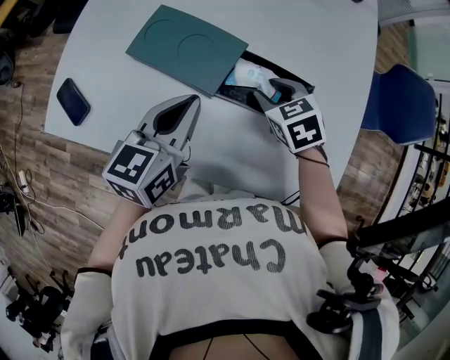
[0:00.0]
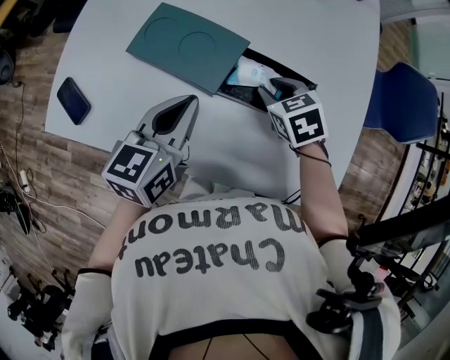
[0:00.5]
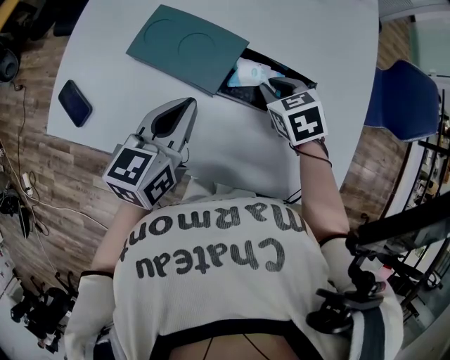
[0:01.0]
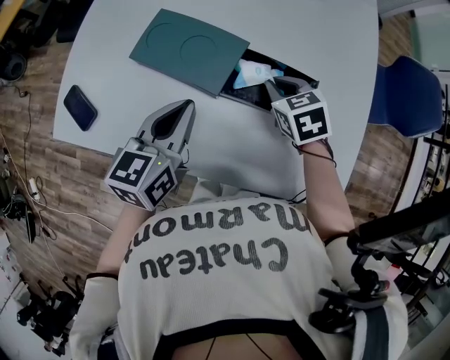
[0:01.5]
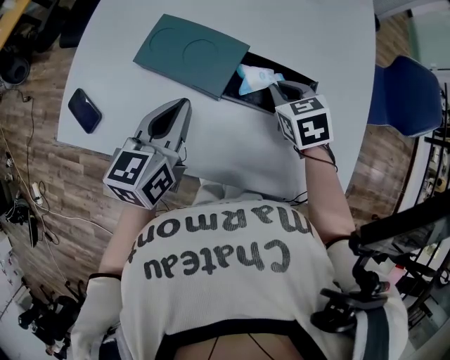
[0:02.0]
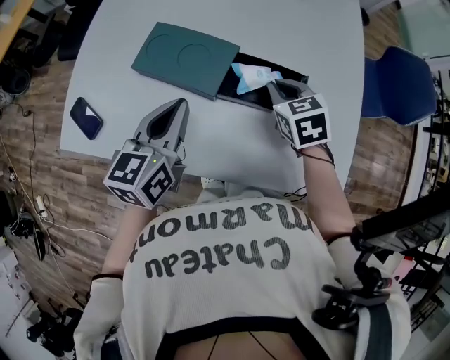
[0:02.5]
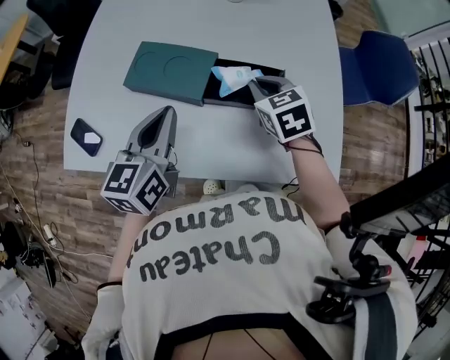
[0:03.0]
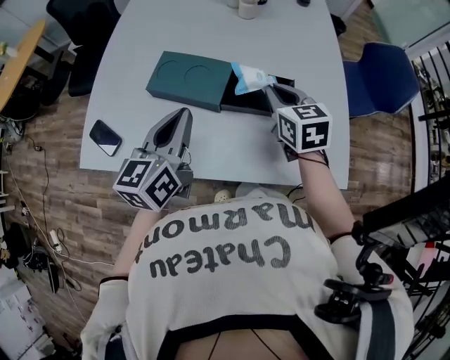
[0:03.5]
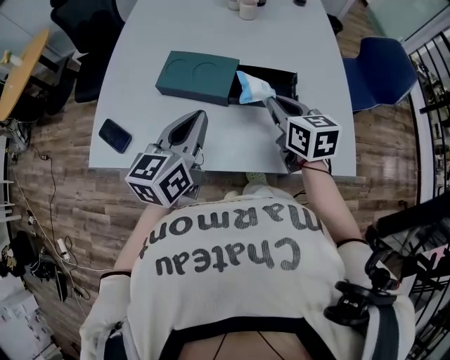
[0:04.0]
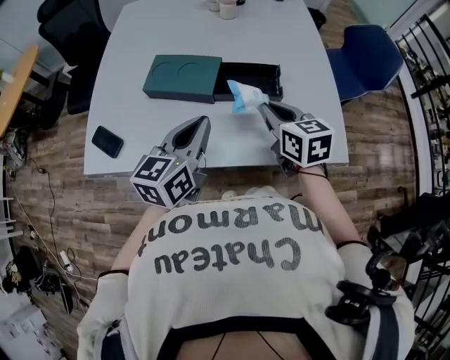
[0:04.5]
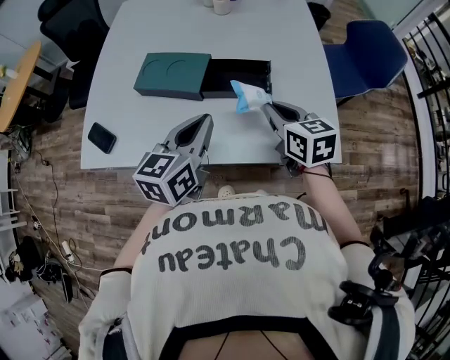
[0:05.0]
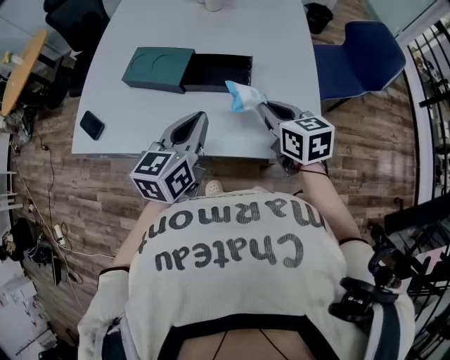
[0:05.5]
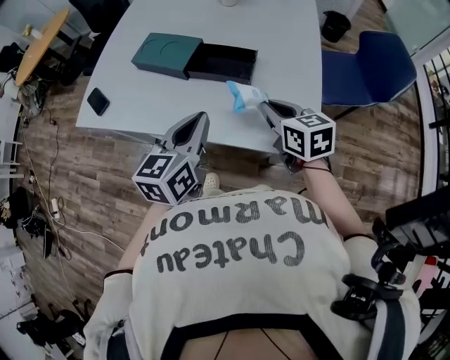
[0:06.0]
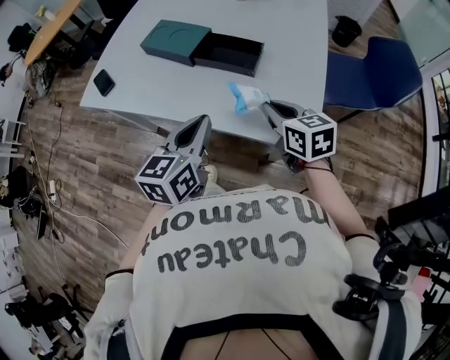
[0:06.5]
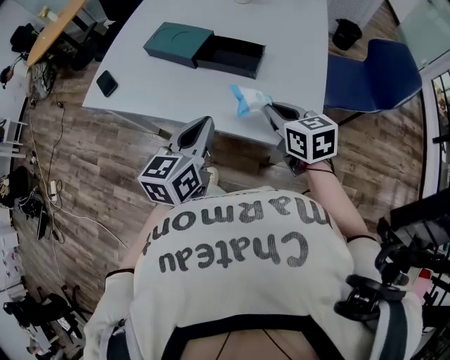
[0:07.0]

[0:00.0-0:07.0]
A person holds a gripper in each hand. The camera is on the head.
0:00.0 to 0:02.0: The right gripper closes its fingers.
0:02.0 to 0:03.5: Both grippers move upward, approximately 10 cm. The right gripper changes its angle by some 30 degrees.
0:03.5 to 0:05.0: The right gripper moves backward and to the right, some 10 cm; the left gripper shifts approximately 10 cm to the right and backward.
0:05.0 to 0:07.0: The two grippers go approximately 15 cm backward and to the right.

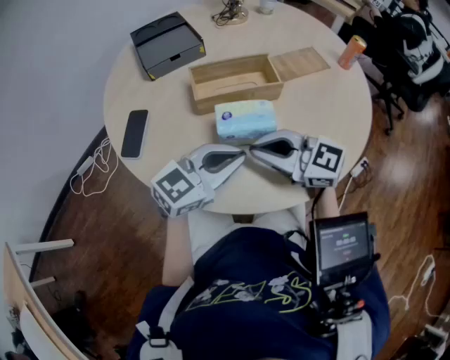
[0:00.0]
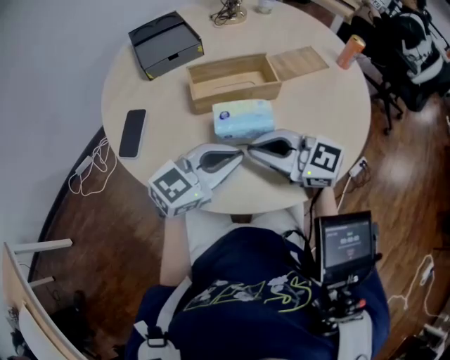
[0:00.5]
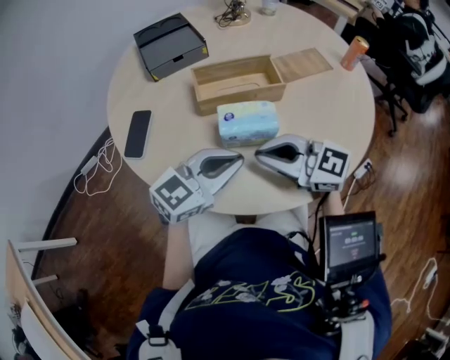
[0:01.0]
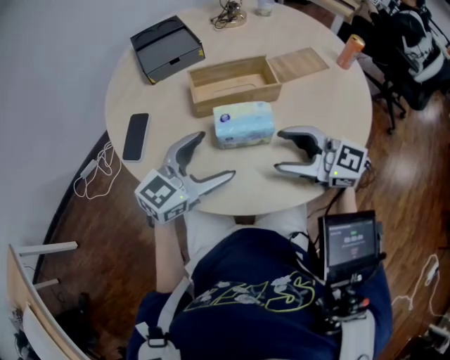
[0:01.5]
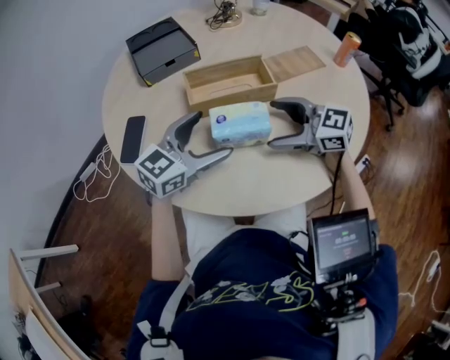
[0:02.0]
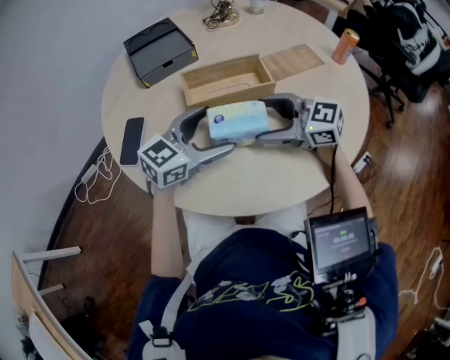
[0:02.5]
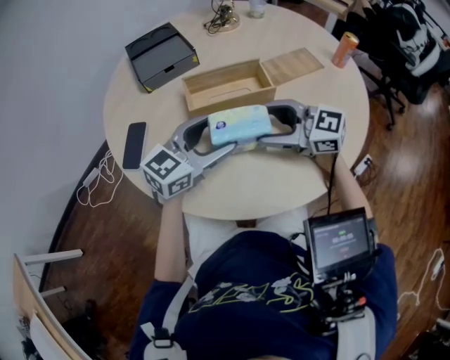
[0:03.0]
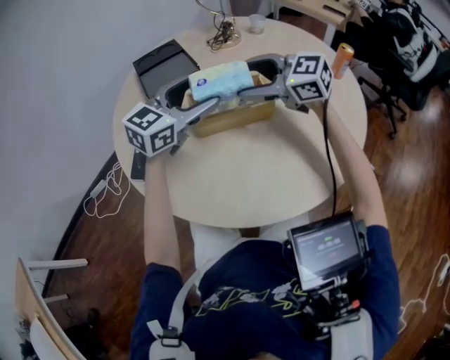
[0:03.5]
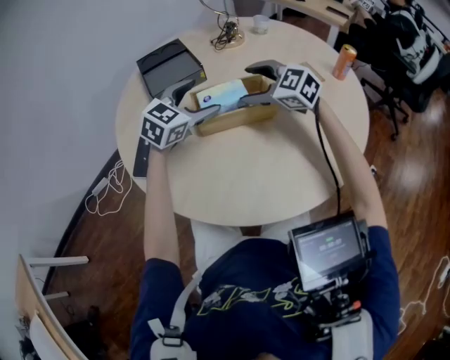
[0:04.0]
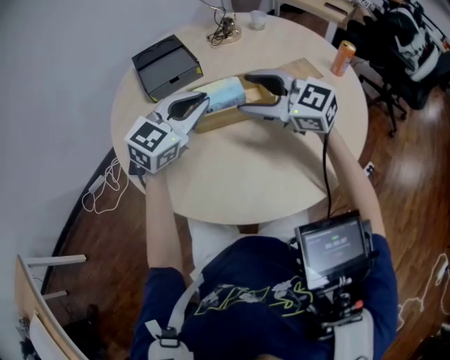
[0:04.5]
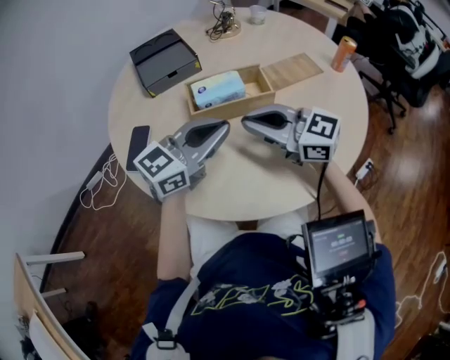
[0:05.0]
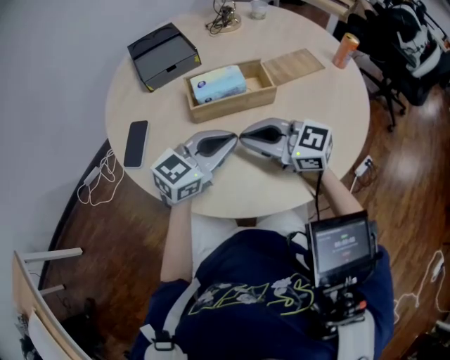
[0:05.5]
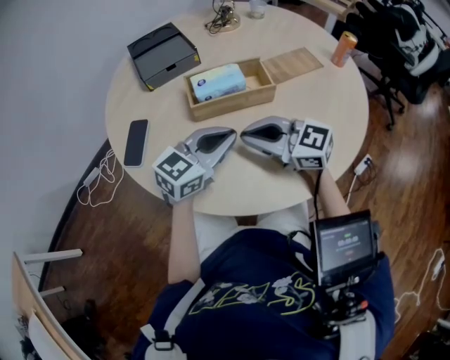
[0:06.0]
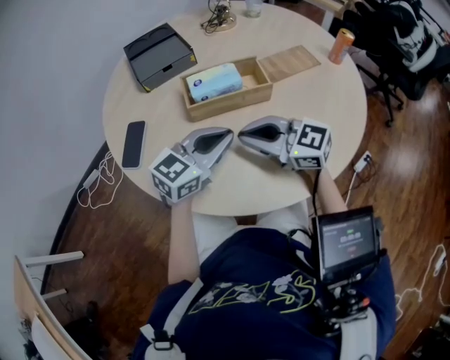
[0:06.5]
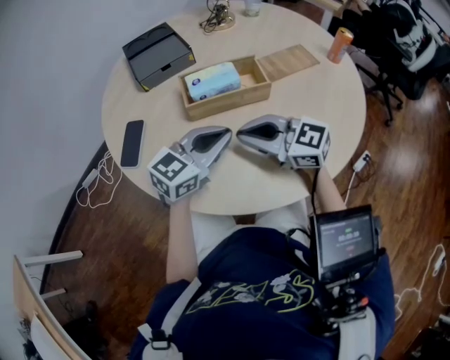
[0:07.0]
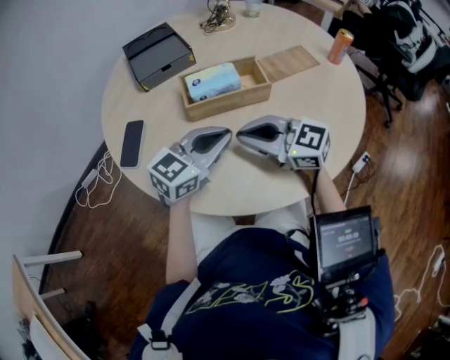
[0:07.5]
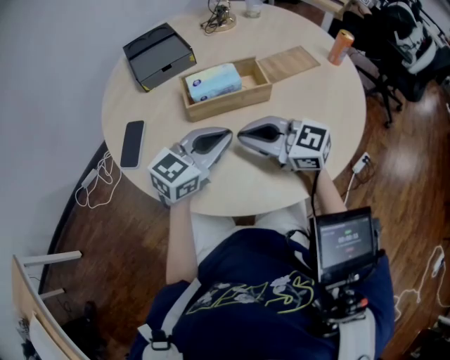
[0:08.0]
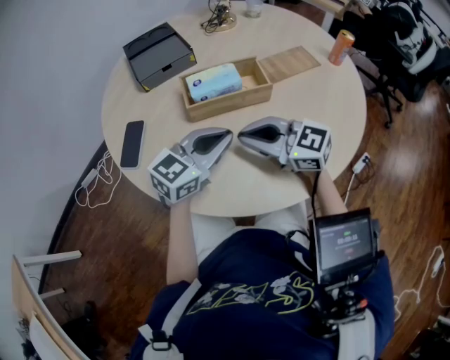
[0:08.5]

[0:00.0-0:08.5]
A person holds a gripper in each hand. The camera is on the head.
0:00.0 to 0:02.0: The left gripper changes place by about 10 cm, and opens up. The right gripper moves some 10 cm, and opens its fingers.
0:02.0 to 0:04.0: The left gripper shifts by some 15 cm, and rotates roughly 20 degrees, while the right gripper moves roughly 15 cm, and rotates some 30 degrees.
0:04.0 to 0:06.5: The left gripper ends up approximately 15 cm from where it was, turns by about 20 degrees, and closes up; the right gripper shifts by about 20 cm, swivels roughly 30 degrees, and closes.
0:06.5 to 0:08.5: Both grippers stay put.

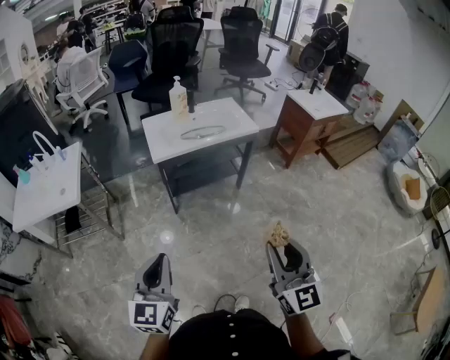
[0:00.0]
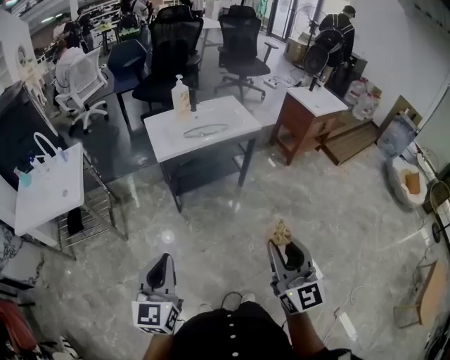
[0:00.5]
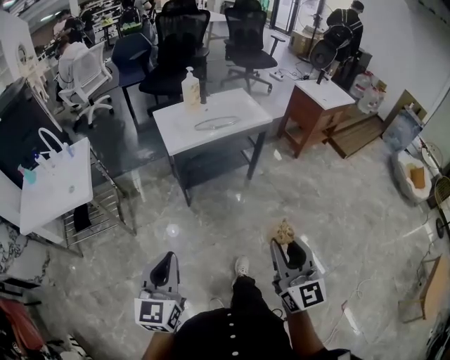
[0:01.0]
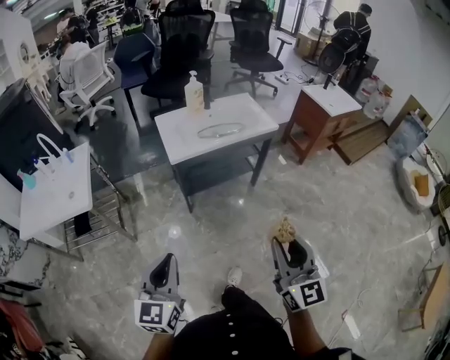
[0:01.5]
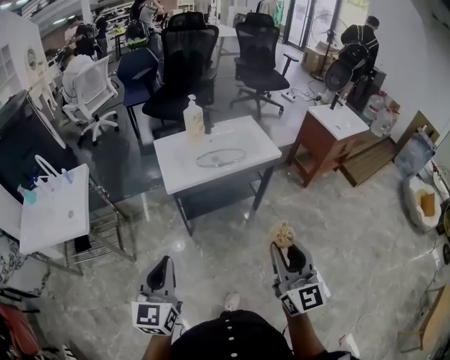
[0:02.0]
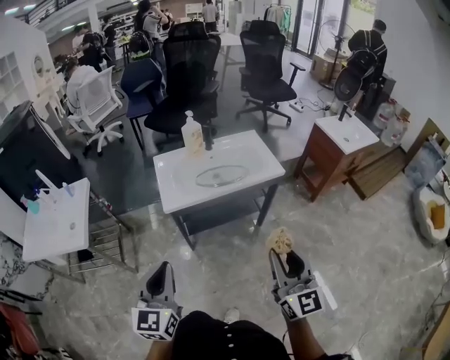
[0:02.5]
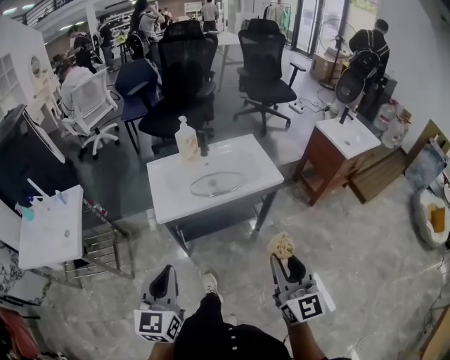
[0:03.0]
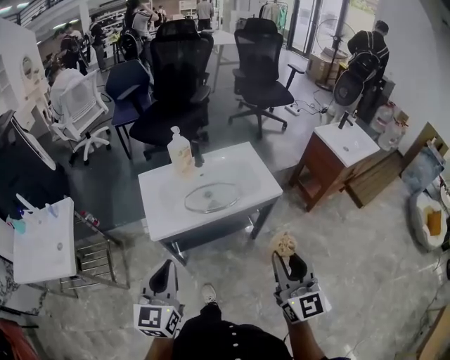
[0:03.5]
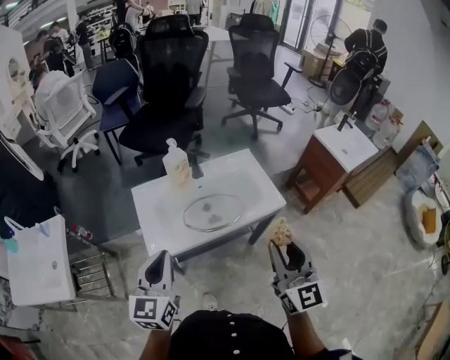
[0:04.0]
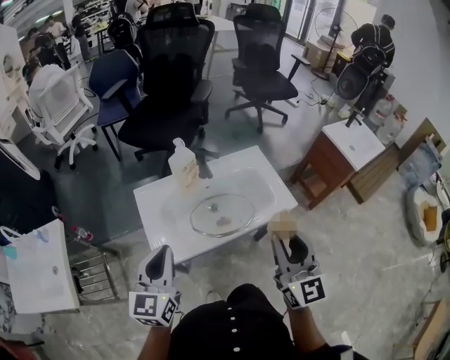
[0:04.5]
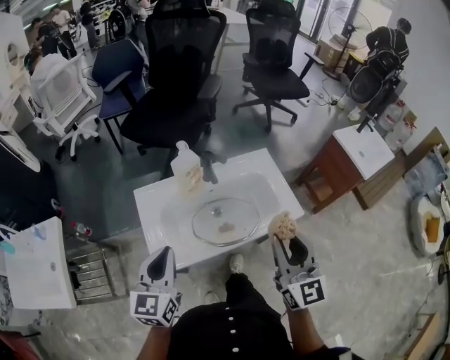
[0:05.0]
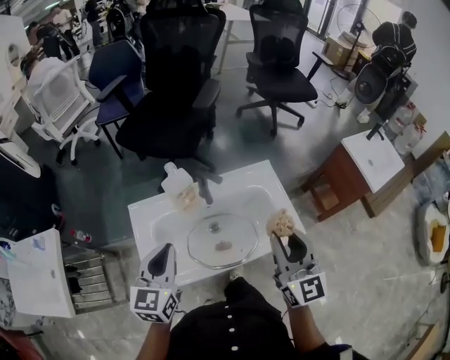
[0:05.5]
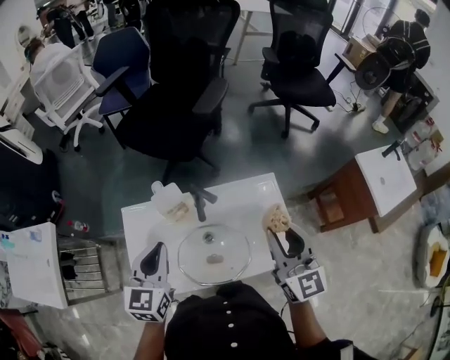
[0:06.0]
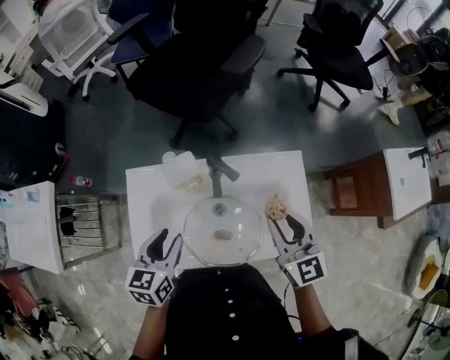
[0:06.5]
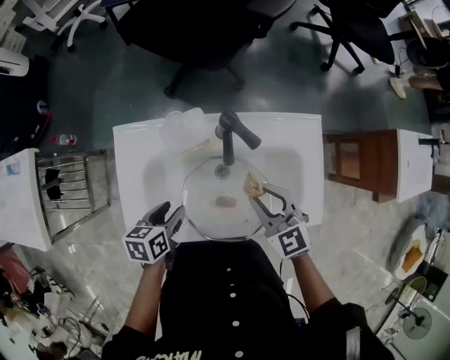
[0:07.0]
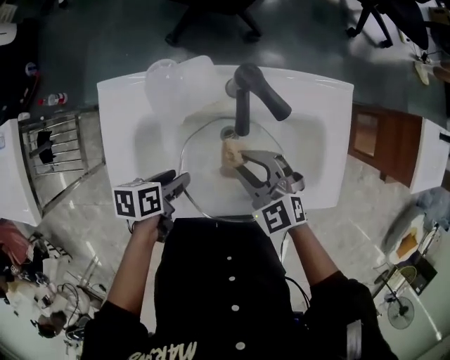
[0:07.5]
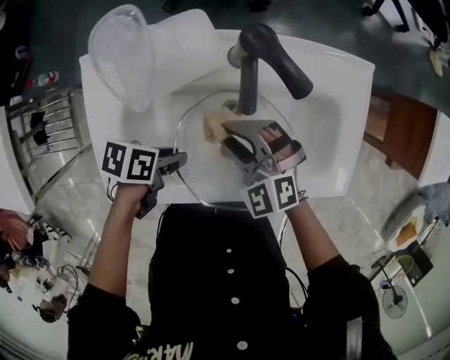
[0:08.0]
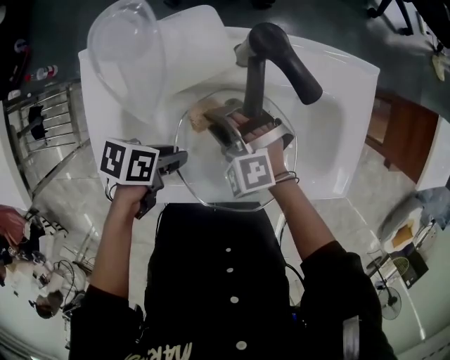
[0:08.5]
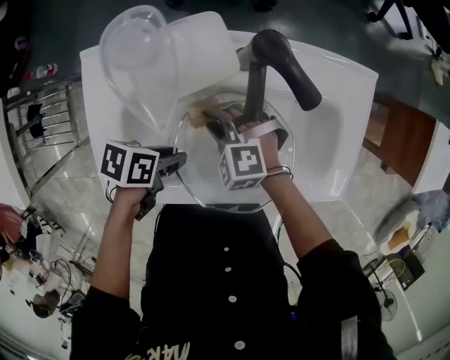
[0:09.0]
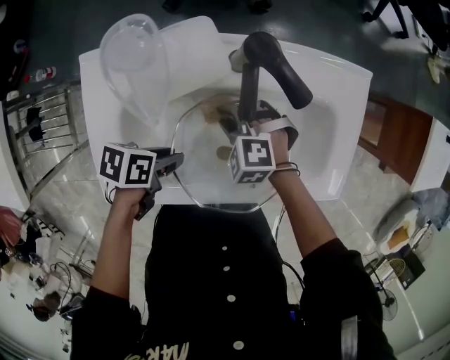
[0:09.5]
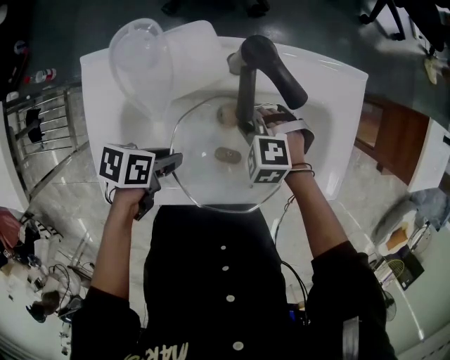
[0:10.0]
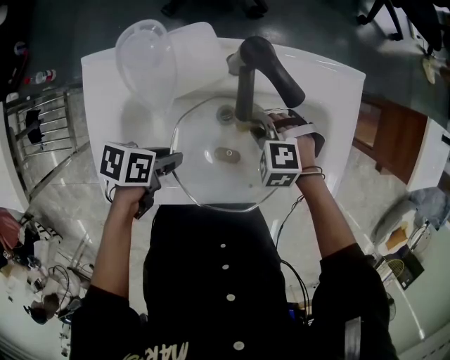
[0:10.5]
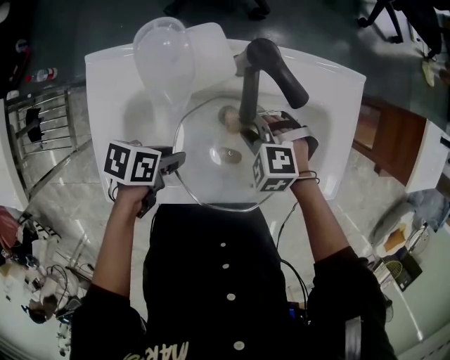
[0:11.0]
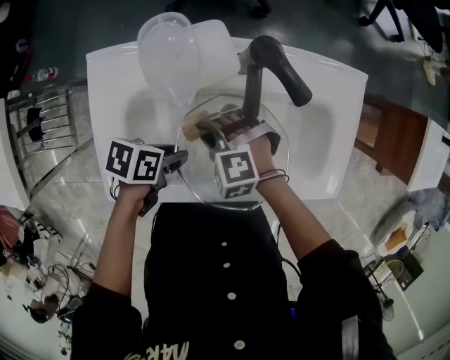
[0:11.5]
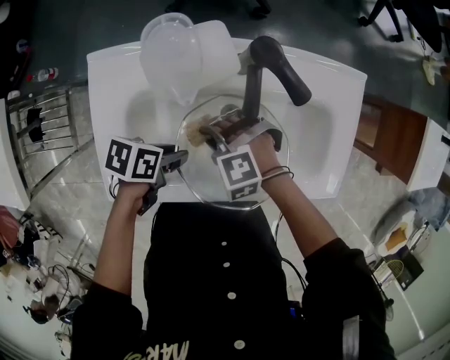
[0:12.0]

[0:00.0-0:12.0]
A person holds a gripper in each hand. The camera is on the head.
0:00.0 to 0:02.0: Both grippers travel together forward, about 20 cm.
0:02.0 to 0:04.0: Both grippers travel together forward, about 35 cm.
0:04.0 to 0:06.0: The grippers both shift forward by about 30 cm.
0:06.0 to 0:08.0: The grippers both shift downward by approximately 35 cm. The left gripper rotates approximately 80 degrees, and opens up. Meanwhile the right gripper angles its fingers downward, by approximately 40 degrees.
0:08.0 to 0:10.0: The right gripper shifts some 10 cm downward, and swivels about 30 degrees.
0:10.0 to 0:12.0: The right gripper moves roughly 10 cm.
